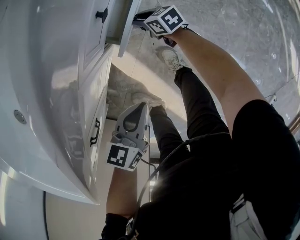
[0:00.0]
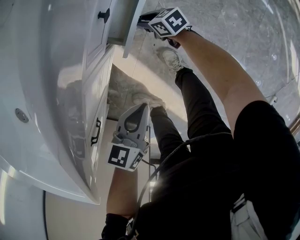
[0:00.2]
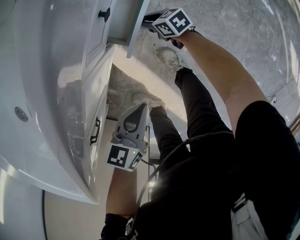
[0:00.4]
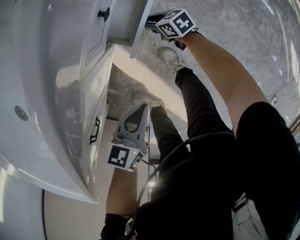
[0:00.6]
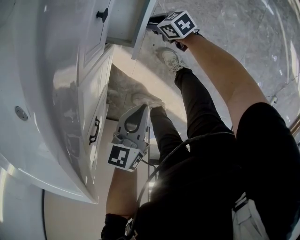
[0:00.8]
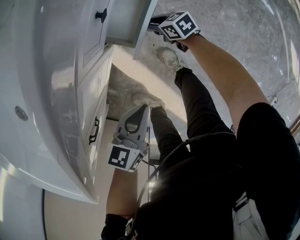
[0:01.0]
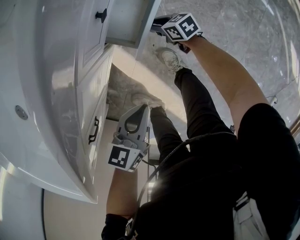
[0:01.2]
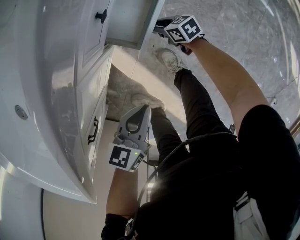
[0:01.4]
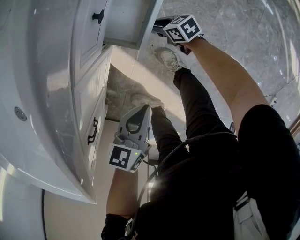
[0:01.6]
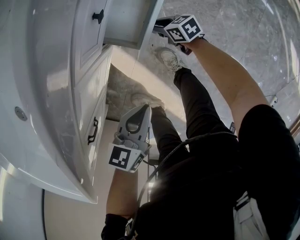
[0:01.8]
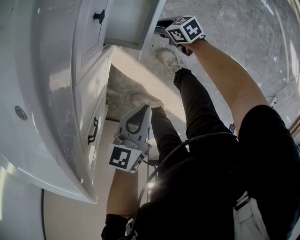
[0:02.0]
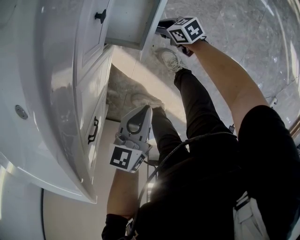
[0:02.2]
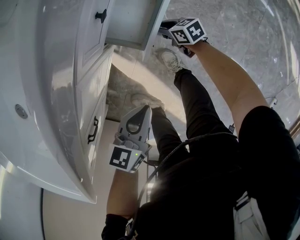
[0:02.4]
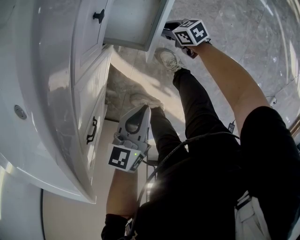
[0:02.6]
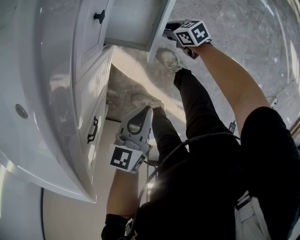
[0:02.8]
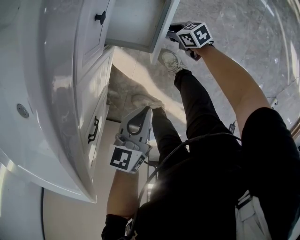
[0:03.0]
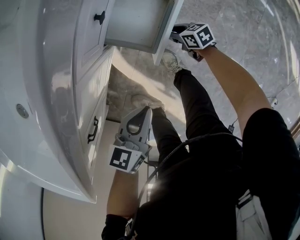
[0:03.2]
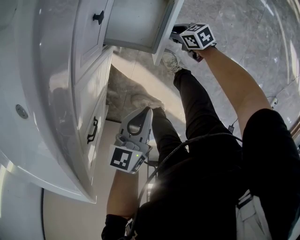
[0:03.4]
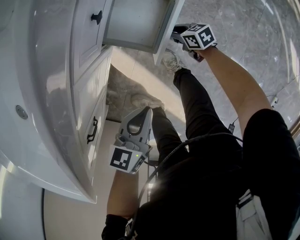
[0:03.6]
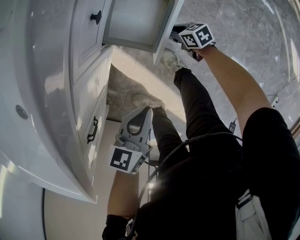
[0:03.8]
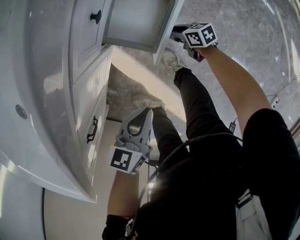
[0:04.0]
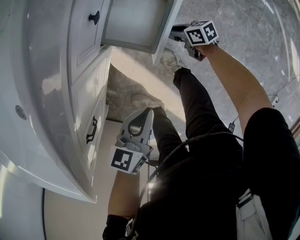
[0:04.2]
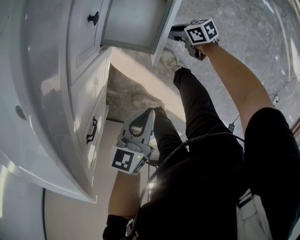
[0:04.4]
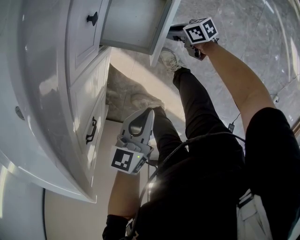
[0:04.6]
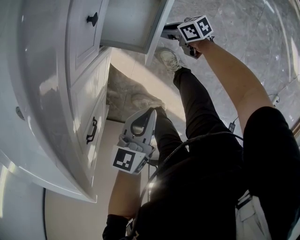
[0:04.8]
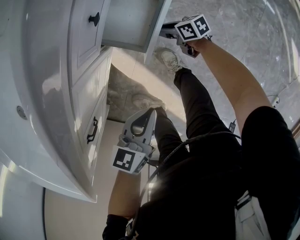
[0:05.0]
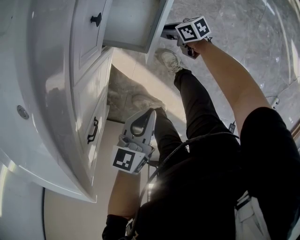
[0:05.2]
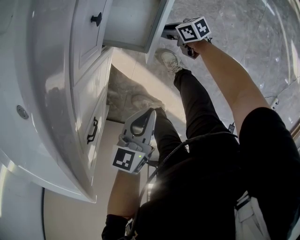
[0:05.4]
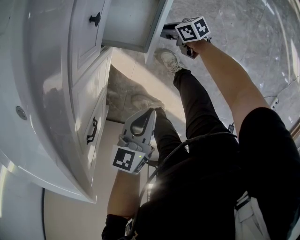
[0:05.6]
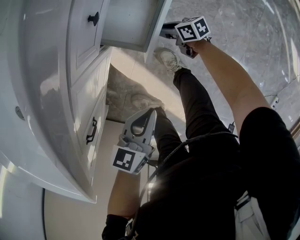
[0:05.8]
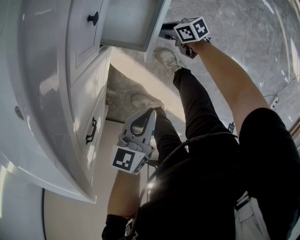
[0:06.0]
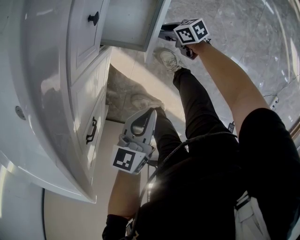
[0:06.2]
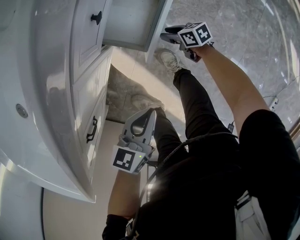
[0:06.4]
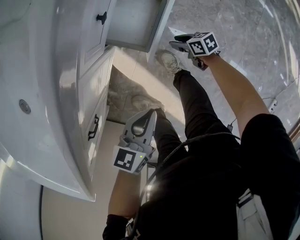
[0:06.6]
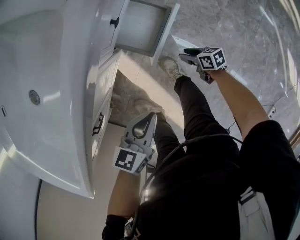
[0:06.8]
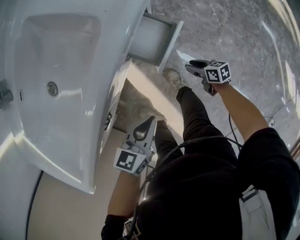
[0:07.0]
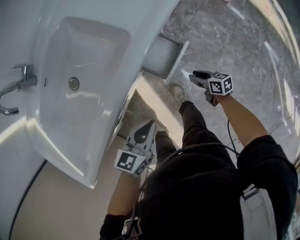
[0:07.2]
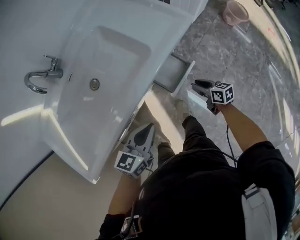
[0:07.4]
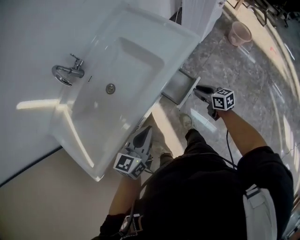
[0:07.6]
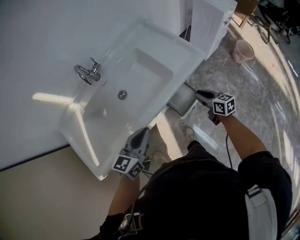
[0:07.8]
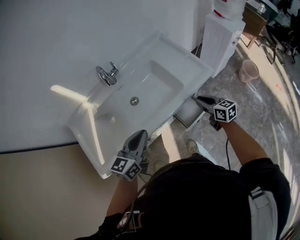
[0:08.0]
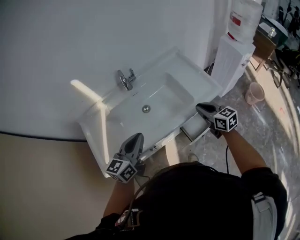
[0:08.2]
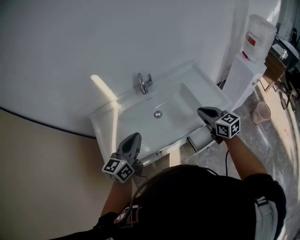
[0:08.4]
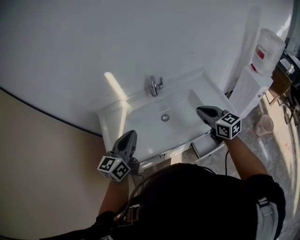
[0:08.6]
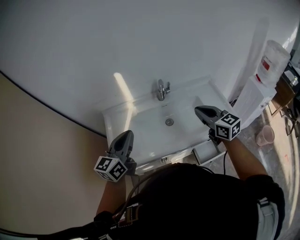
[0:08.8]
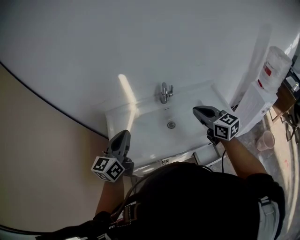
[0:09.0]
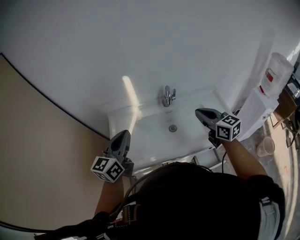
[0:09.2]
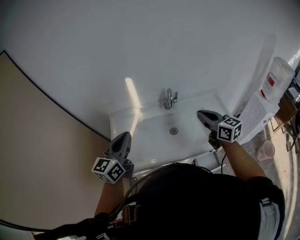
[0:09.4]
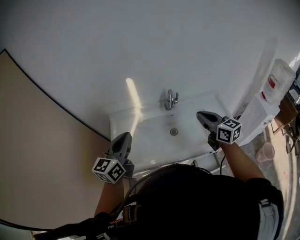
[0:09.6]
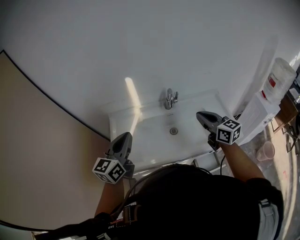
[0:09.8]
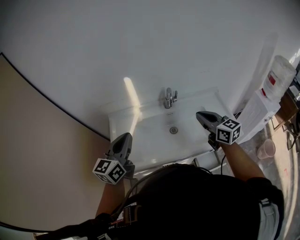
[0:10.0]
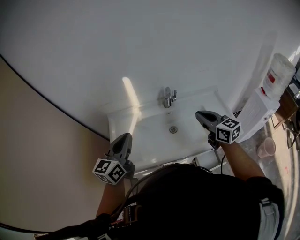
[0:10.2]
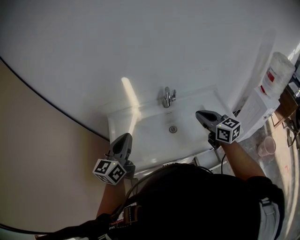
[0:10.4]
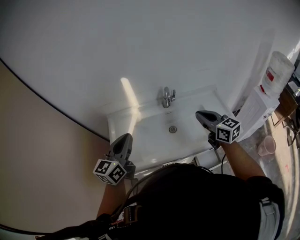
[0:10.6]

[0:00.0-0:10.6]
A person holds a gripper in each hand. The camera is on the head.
0.0 to 1.6 s: The right gripper heads to the right and backward, covering some 10 cm.
1.6 to 3.0 s: The grippers stay close to where they were, moving slightly.
3.0 to 6.0 s: There are only small adjustments of the grippers.
6.0 to 7.6 s: The grippers both shift upward by about 40 cm. The right gripper turns by some 20 degrees, while the left gripper swivels roughly 30 degrees.
7.6 to 9.0 s: The right gripper moves upward, roughly 50 cm, twists about 40 degrees counterclockwise, seen from behind, and closes up, while the left gripper shifts by about 40 cm, and changes its angle by some 50 degrees.
9.0 to 10.6 s: The grippers stay close to where they were, moving slightly.

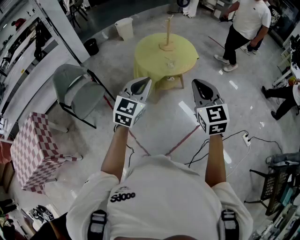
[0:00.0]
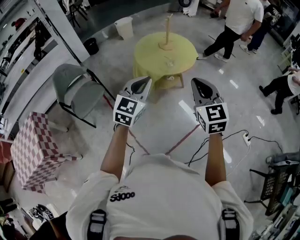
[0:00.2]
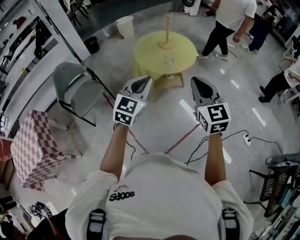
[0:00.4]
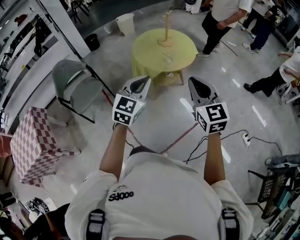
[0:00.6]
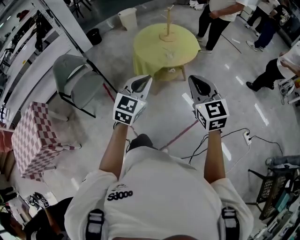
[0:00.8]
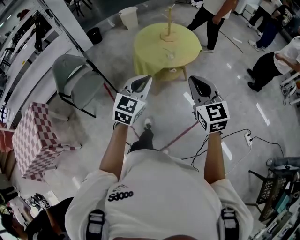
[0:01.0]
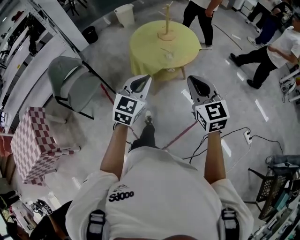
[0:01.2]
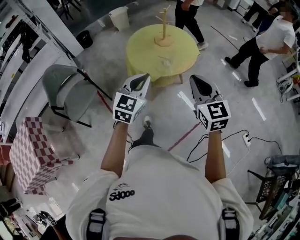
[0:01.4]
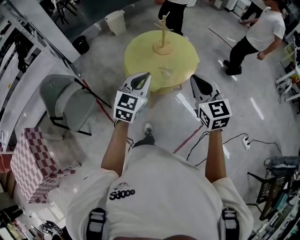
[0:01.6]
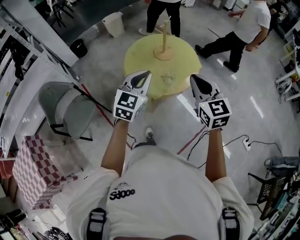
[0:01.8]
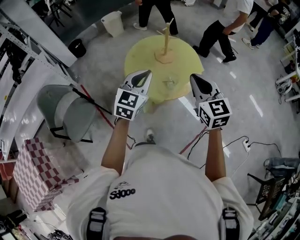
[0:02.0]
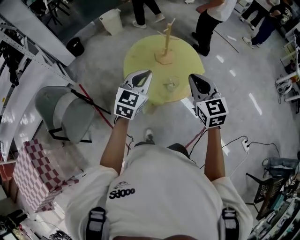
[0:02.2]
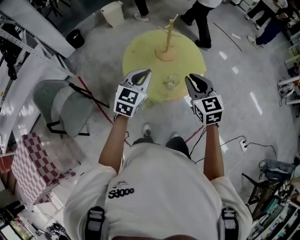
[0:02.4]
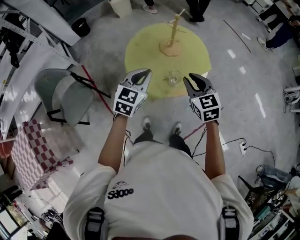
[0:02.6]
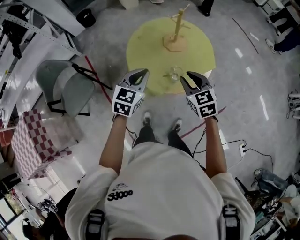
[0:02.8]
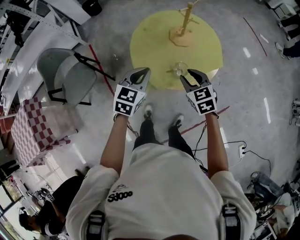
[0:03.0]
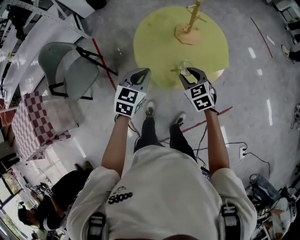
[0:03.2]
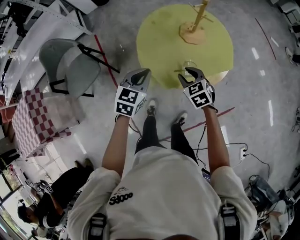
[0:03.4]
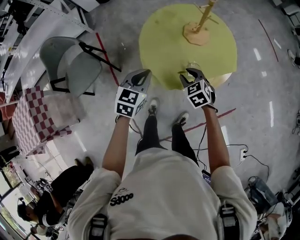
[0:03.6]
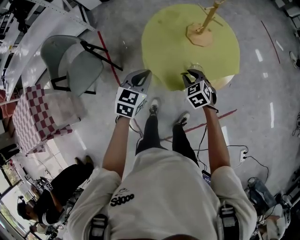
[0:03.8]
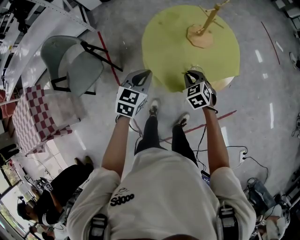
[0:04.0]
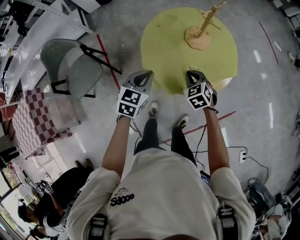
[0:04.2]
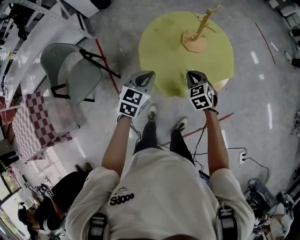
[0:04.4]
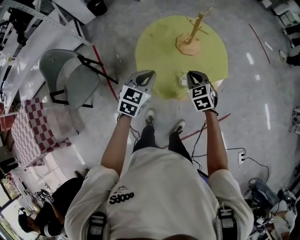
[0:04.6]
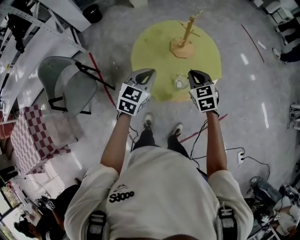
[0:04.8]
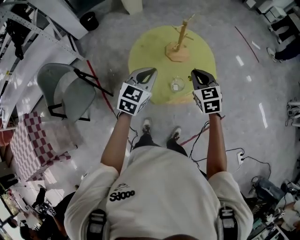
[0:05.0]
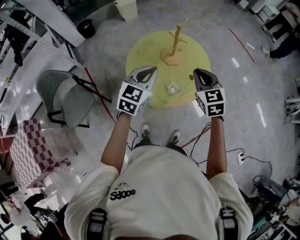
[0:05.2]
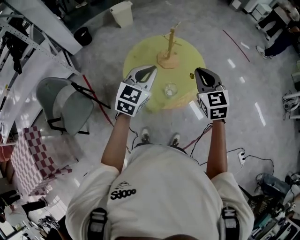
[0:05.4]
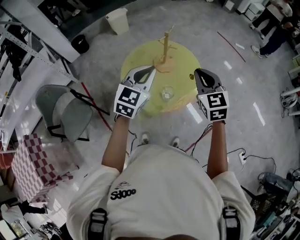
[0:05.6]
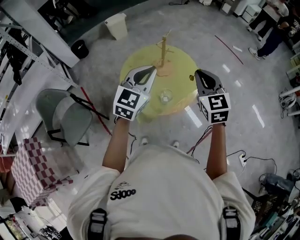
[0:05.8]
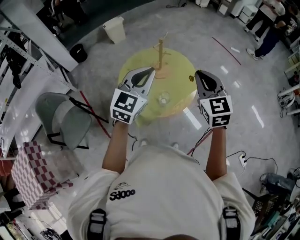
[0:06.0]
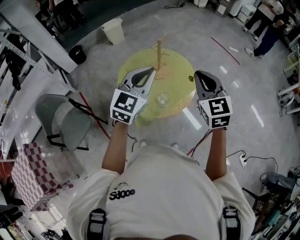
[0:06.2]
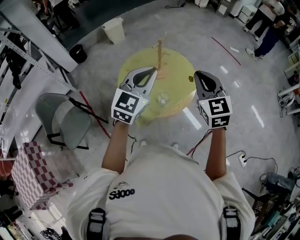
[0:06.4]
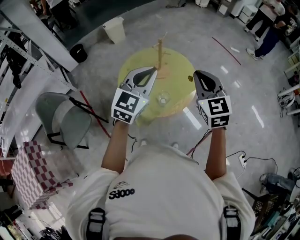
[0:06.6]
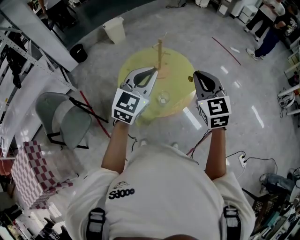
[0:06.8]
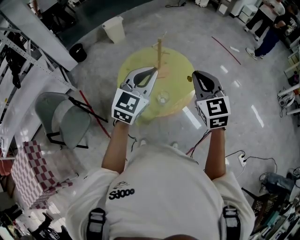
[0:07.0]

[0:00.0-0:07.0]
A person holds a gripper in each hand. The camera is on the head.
0.0 to 1.4 s: The two grippers go about 15 cm forward and downward.
1.4 to 2.8 s: The left gripper moves forward, about 25 cm; the right gripper goes approximately 35 cm forward and downward, changes its angle by about 20 degrees, and opens its fingers.
2.8 to 4.2 s: The left gripper goes roughly 10 cm downward and to the left. The right gripper shifts about 15 cm downward and forward, swivels about 20 degrees, and closes its fingers.
4.2 to 5.6 s: The two grippers go about 30 cm upward and to the right. The left gripper turns by some 30 degrees. The right gripper swivels roughly 30 degrees.
5.6 to 7.0 s: The two grippers go some 5 cm upward.

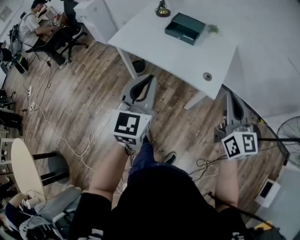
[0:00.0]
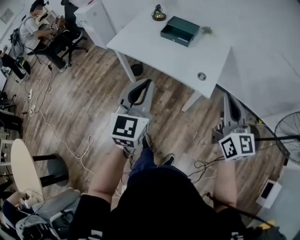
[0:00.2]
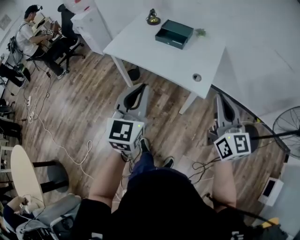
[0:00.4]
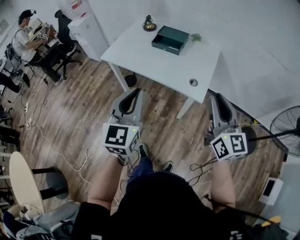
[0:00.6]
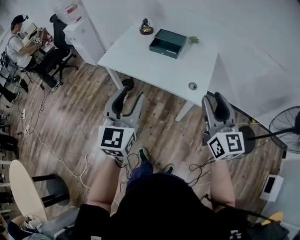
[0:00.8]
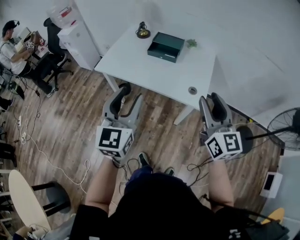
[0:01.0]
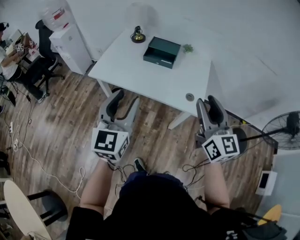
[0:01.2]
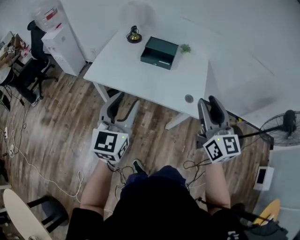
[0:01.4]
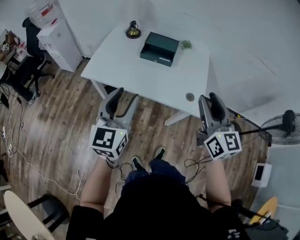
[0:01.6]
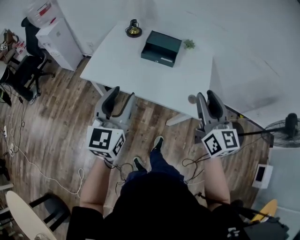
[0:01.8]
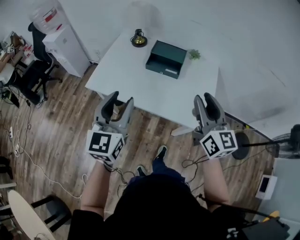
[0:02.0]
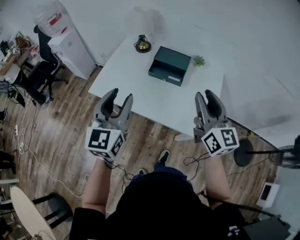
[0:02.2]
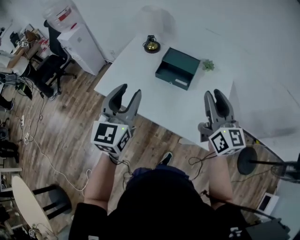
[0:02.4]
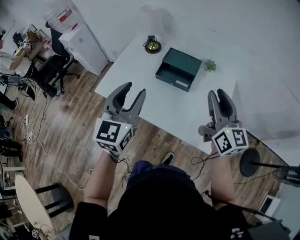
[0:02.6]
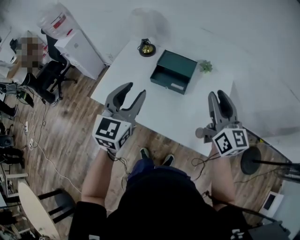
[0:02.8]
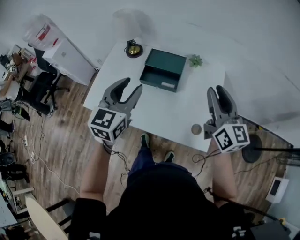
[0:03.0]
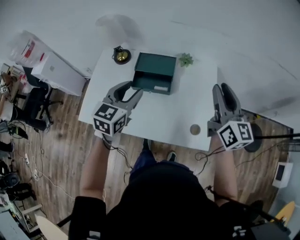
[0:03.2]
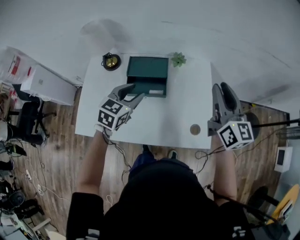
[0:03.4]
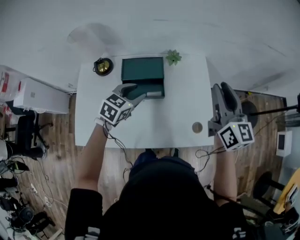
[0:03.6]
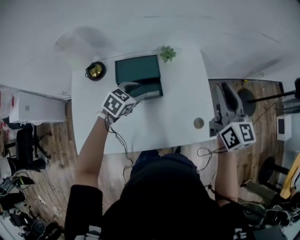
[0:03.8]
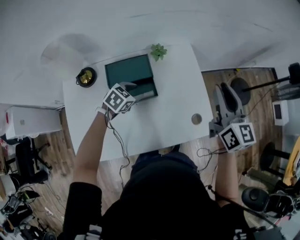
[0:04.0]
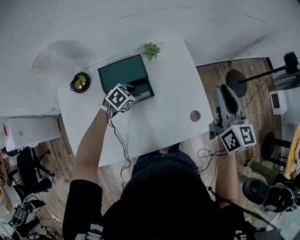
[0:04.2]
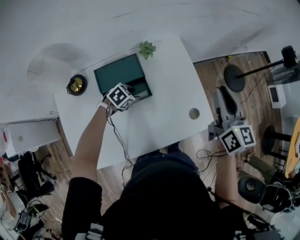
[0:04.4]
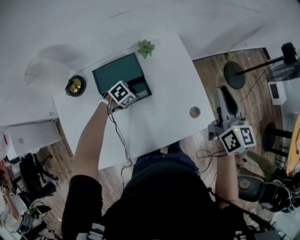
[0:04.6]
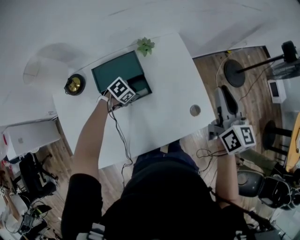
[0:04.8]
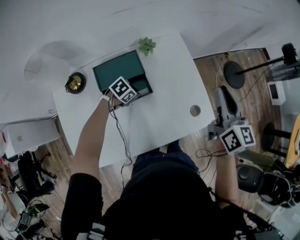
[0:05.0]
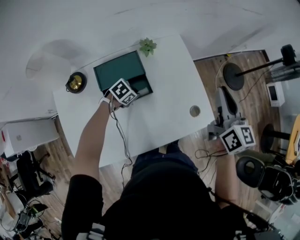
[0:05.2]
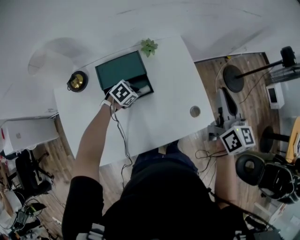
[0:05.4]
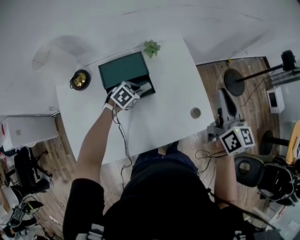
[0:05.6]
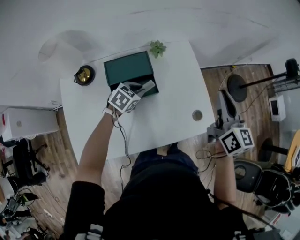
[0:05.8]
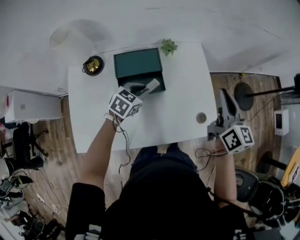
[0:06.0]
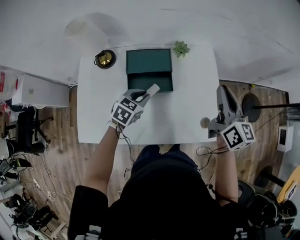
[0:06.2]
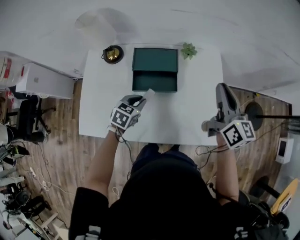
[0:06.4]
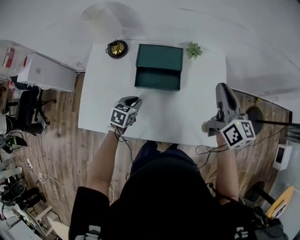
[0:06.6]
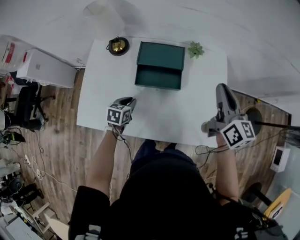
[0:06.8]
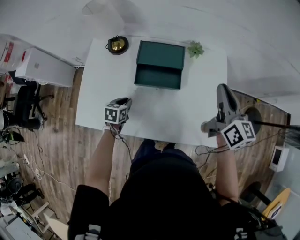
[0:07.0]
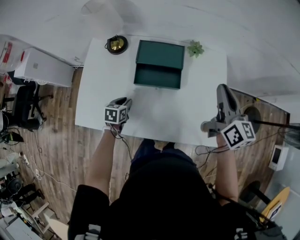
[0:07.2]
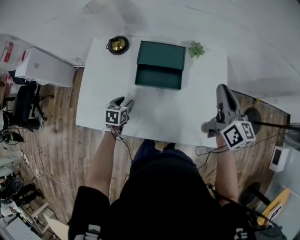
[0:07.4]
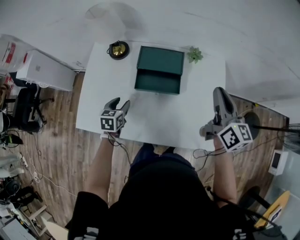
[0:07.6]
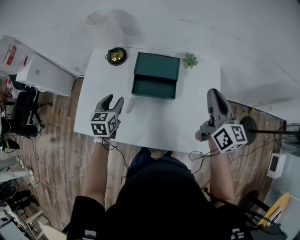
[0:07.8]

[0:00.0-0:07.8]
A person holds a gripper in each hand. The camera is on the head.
0.0 to 1.6 s: Both grippers travel together forward and to the left, some 15 cm. The left gripper opens up, while the right gripper opens its fingers.
1.6 to 3.2 s: The left gripper is displaced forward by about 35 cm, and changes its angle by approximately 30 degrees, while the right gripper heads forward and to the right, covering about 35 cm.
3.2 to 4.6 s: The left gripper shifts some 30 cm downward, and angles its fingers downward, by about 40 degrees, while the right gripper shifts roughly 5 cm downward, and turns by approximately 30 degrees.
4.6 to 6.2 s: The left gripper shifts approximately 10 cm upward, rotates approximately 40 degrees, and closes. Meanwhile the right gripper ends up roughly 10 cm from where it was, and rotates roughly 20 degrees.
6.2 to 7.8 s: The left gripper travels downward and back again, about 10 cm each way, turns by approximately 40 degrees, and opens up, while the right gripper ends up some 5 cm from where it was.
